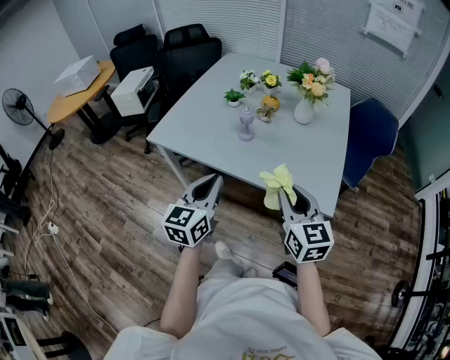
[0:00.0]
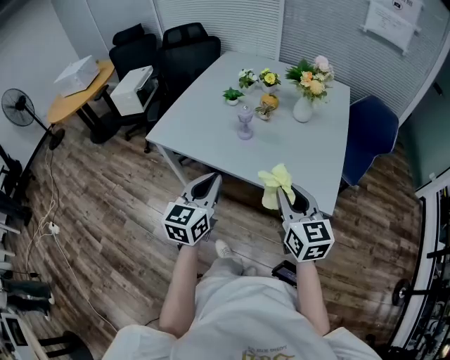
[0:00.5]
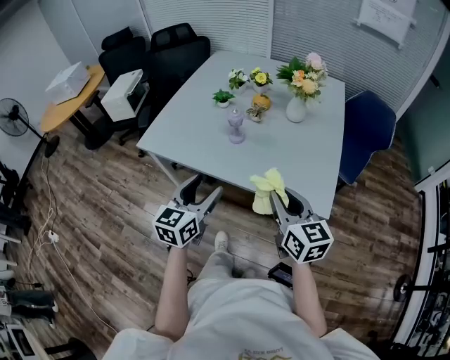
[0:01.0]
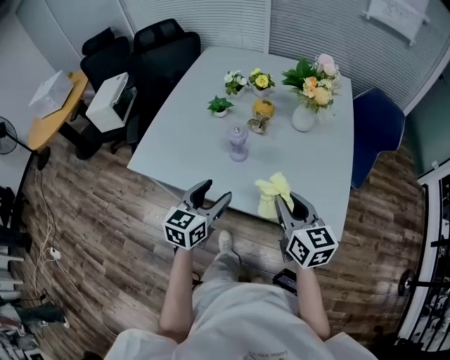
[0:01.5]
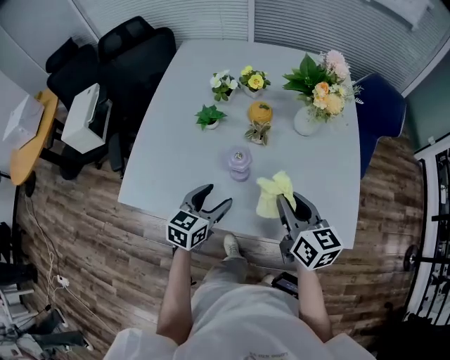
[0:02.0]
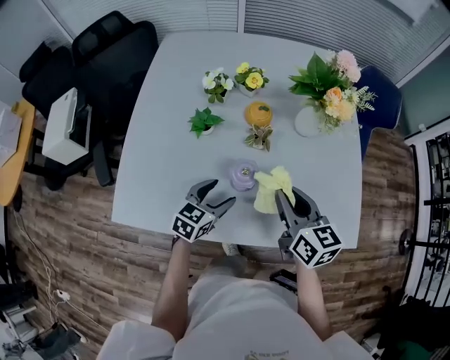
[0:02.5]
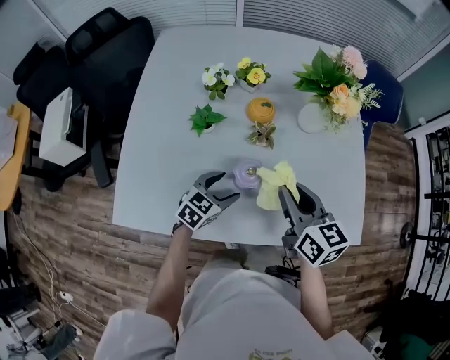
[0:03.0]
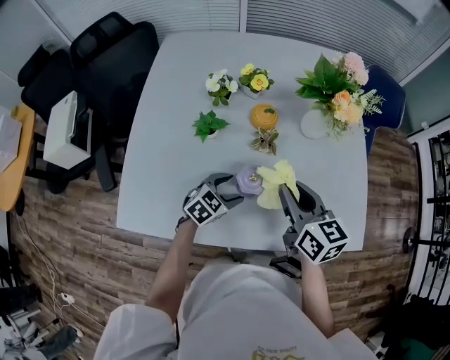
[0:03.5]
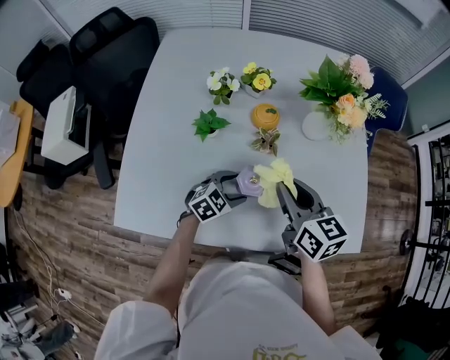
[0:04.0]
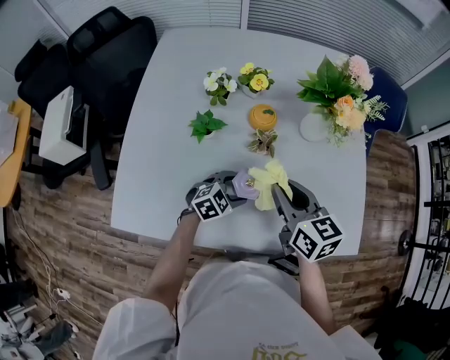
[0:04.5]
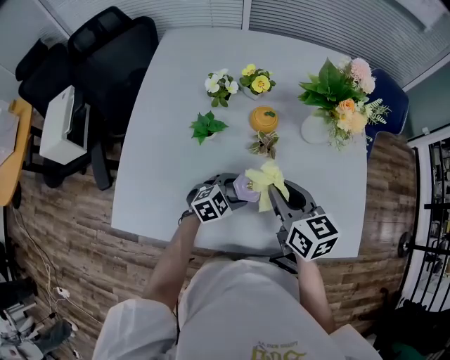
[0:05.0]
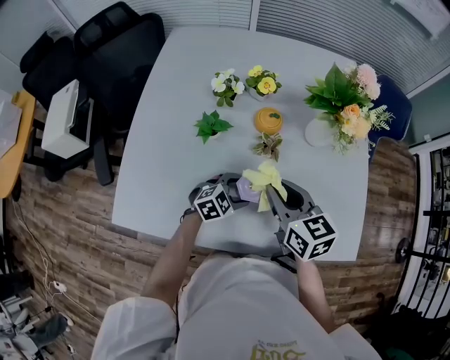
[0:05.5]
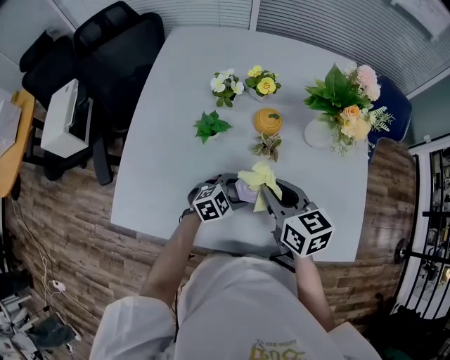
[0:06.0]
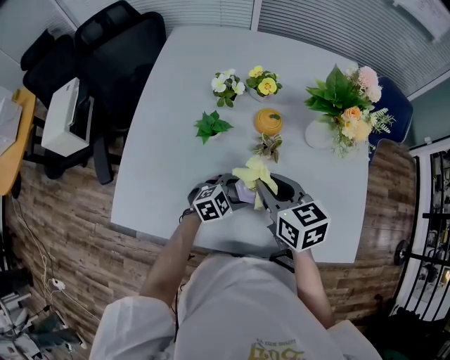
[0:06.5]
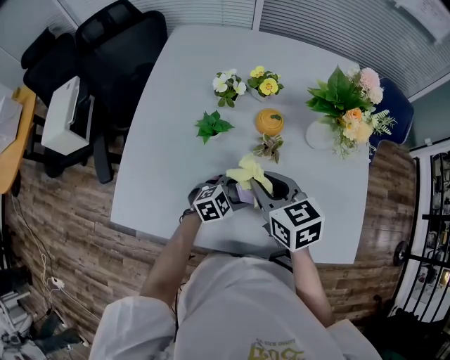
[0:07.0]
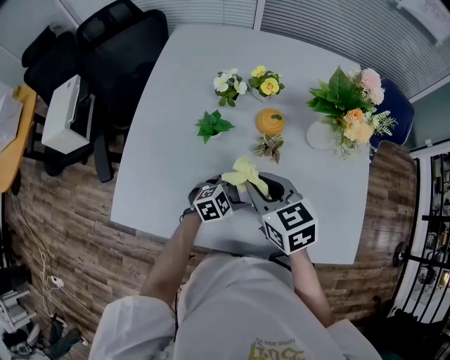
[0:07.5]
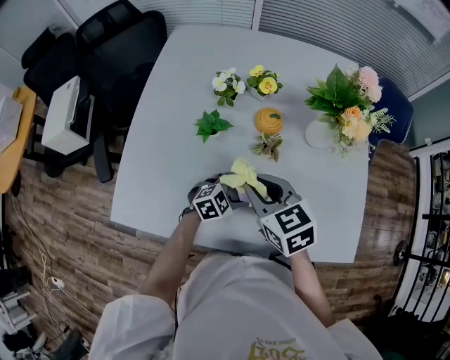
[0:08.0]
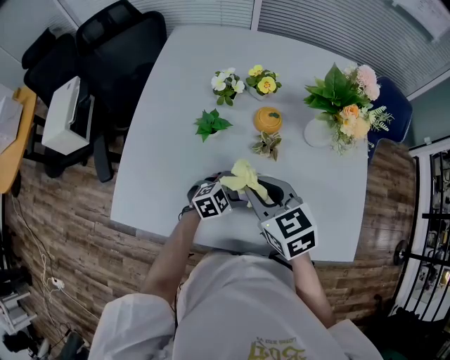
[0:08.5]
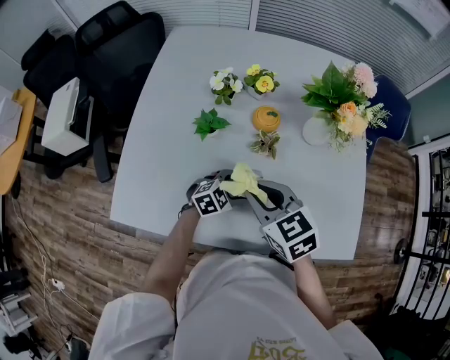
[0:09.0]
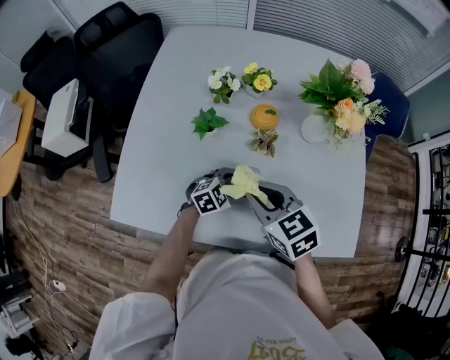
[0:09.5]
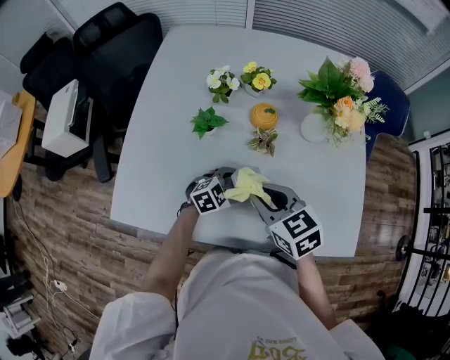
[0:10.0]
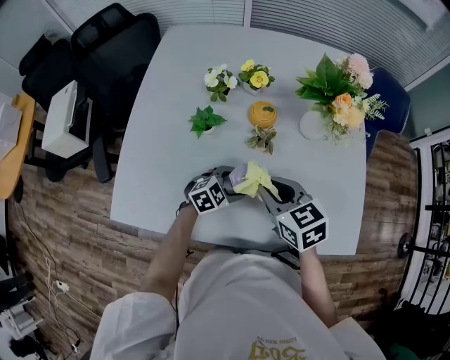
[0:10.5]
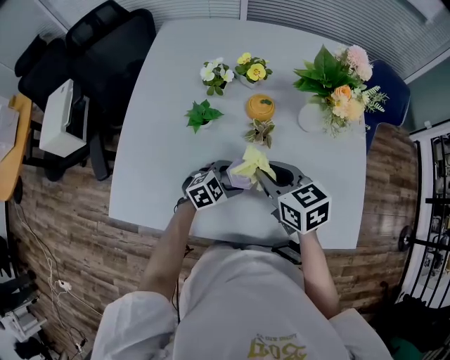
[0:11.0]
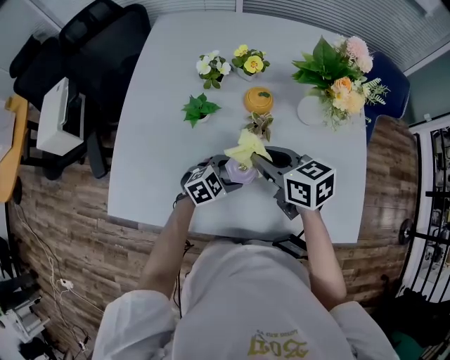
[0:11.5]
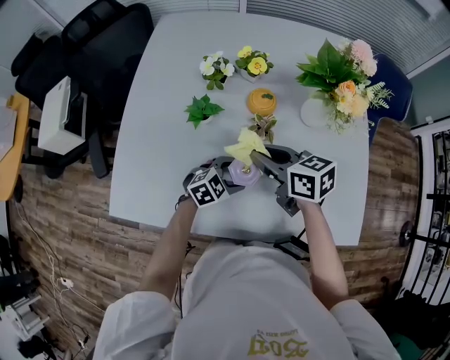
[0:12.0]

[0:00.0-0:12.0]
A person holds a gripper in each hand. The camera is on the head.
0:00.0 to 0:02.0: The right gripper moves forward, approximately 25 cm, and turns by about 20 degrees. Meanwhile the left gripper is displaced forward and downward by some 35 cm, changes its angle by about 30 degrees, and opens up.
0:02.0 to 0:04.0: The left gripper heads downward and forward, covering approximately 15 cm, and turns by roughly 40 degrees. The right gripper is displaced forward and to the left by approximately 10 cm.
0:04.0 to 0:06.0: There are only small adjustments of the grippers.
0:06.0 to 0:08.0: The grippers stay close to where they were, moving slightly.
0:08.0 to 0:10.0: The right gripper changes place by some 5 cm.
0:10.0 to 0:12.0: The right gripper is displaced forward by approximately 10 cm, and rotates about 20 degrees.

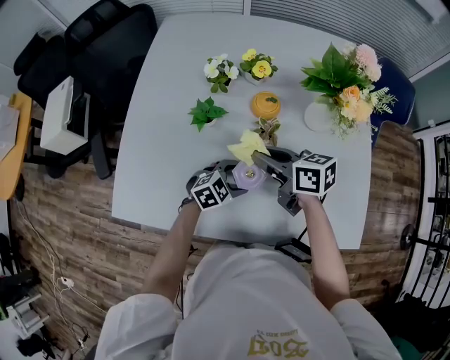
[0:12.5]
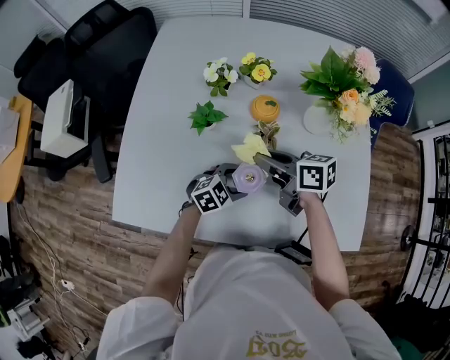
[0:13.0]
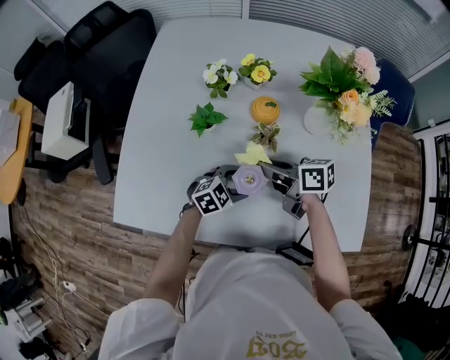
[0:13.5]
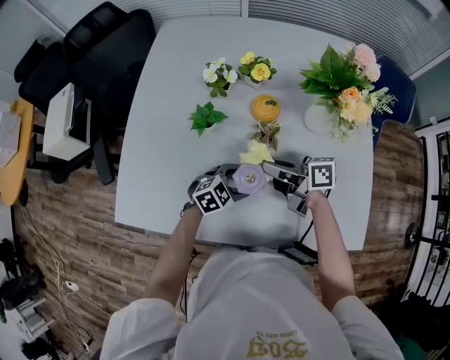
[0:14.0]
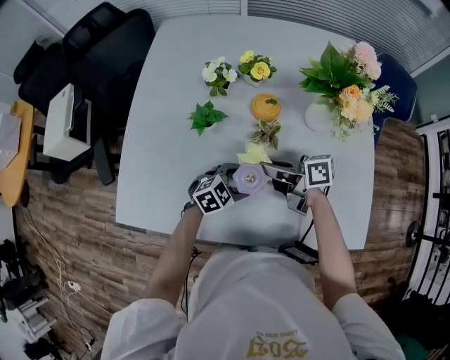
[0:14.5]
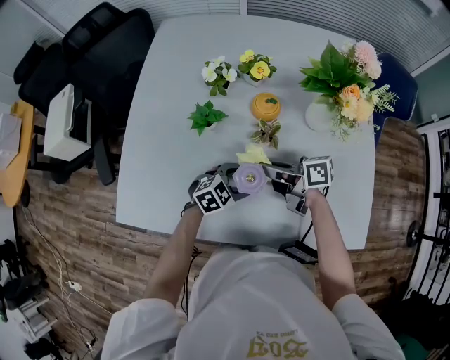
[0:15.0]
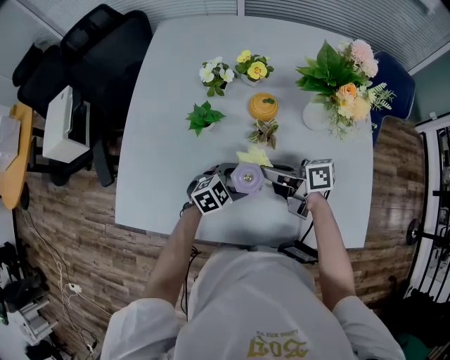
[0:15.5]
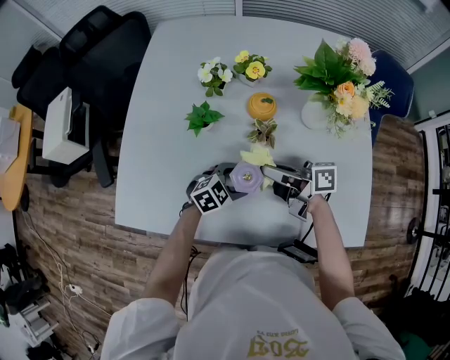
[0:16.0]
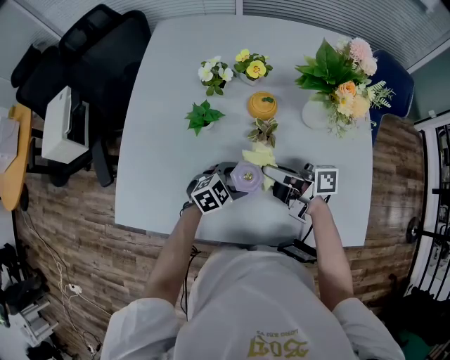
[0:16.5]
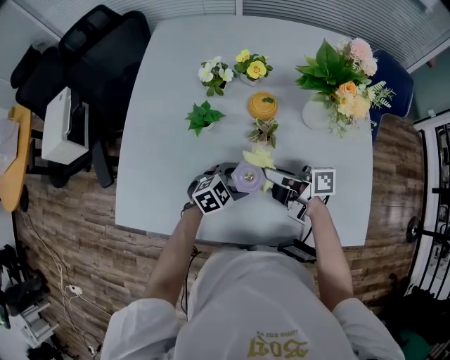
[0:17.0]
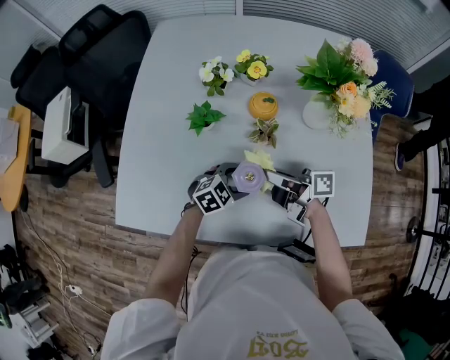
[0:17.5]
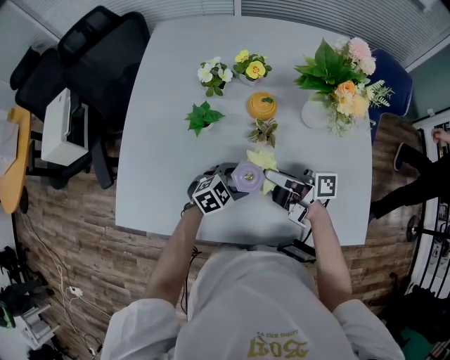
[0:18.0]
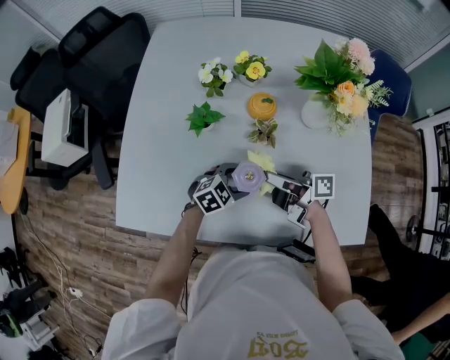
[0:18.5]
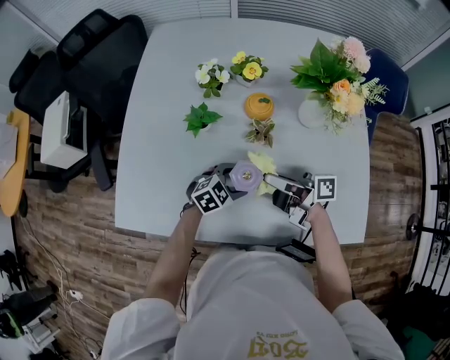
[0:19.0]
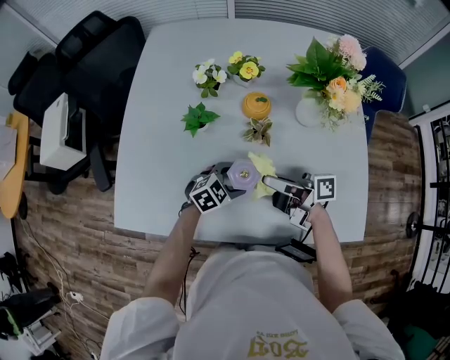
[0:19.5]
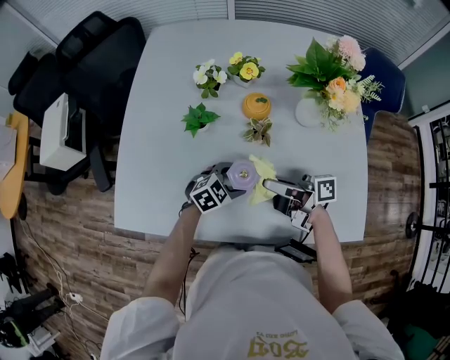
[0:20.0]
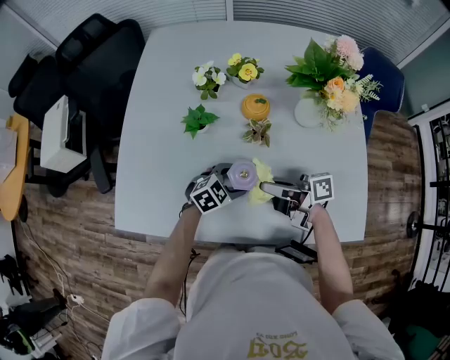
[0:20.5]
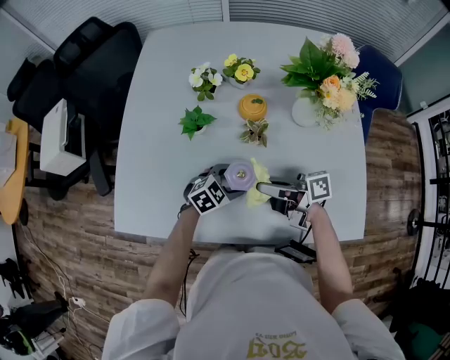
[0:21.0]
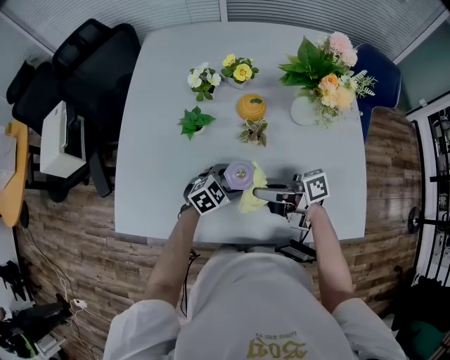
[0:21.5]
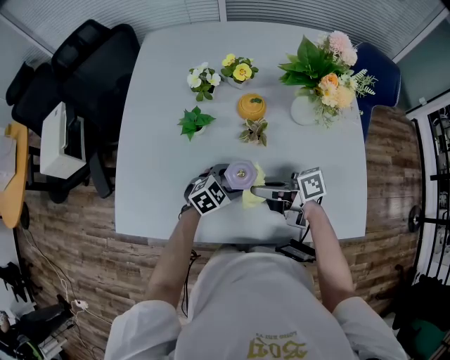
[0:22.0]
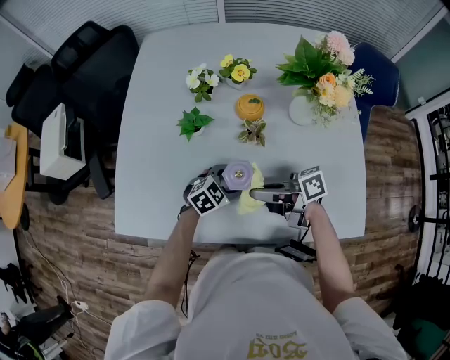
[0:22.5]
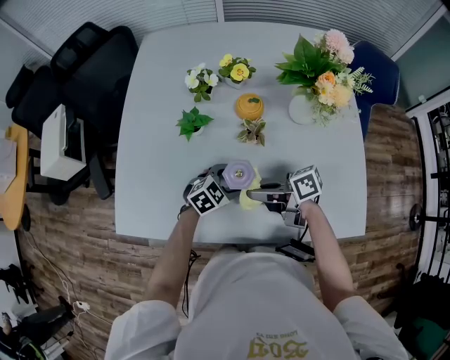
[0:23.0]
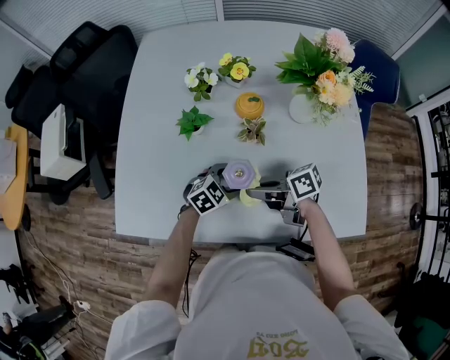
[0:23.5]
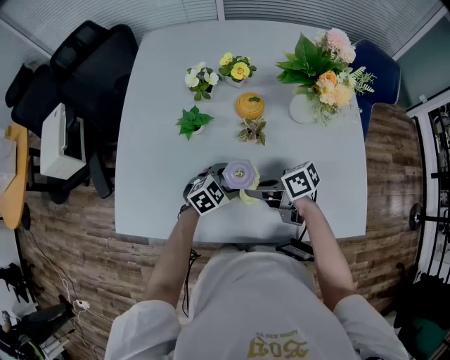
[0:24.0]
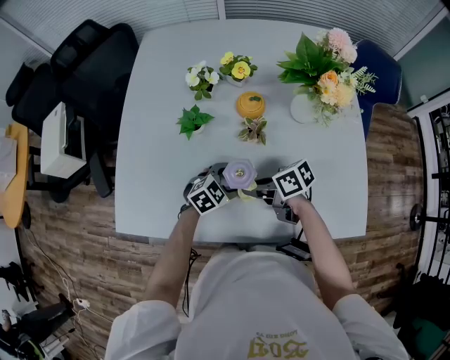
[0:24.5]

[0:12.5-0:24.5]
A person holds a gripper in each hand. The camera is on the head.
0:12.5 to 0:14.5: The right gripper rotates approximately 30 degrees.
0:14.5 to 0:18.5: The grippers make only small movements.
0:18.5 to 0:22.5: The grippers stay close to where they were, moving slightly.
0:22.5 to 0:24.5: The right gripper moves downward, roughly 5 cm, and changes its angle by approximately 30 degrees.

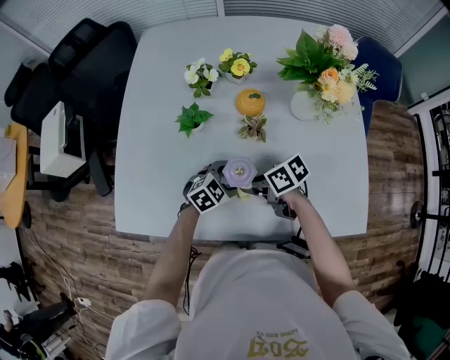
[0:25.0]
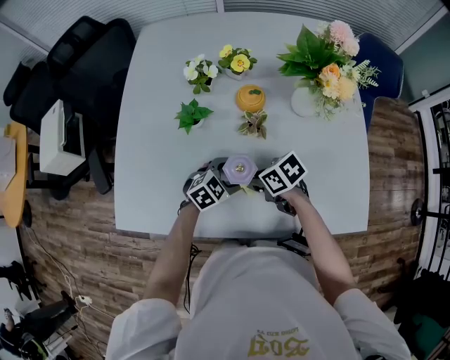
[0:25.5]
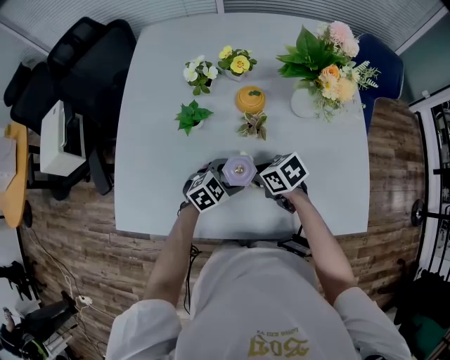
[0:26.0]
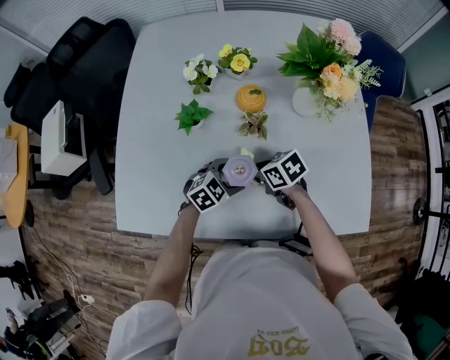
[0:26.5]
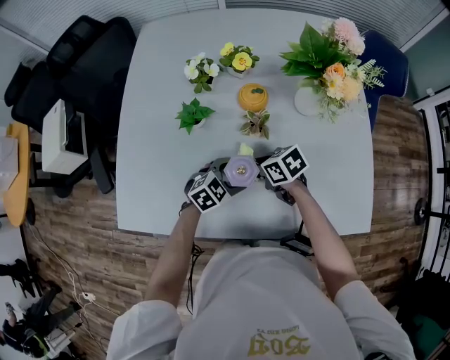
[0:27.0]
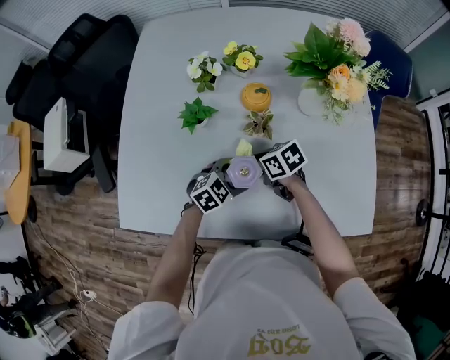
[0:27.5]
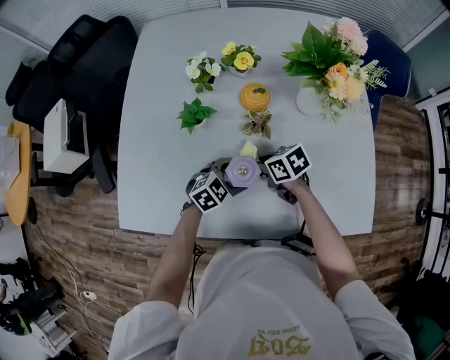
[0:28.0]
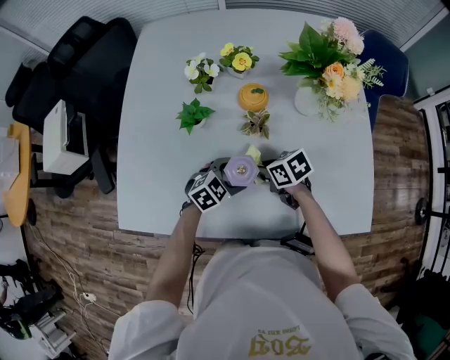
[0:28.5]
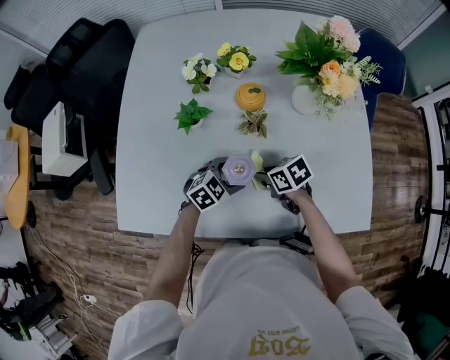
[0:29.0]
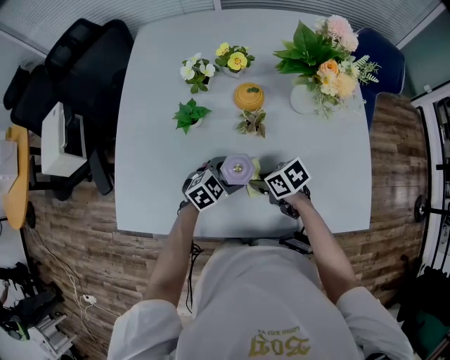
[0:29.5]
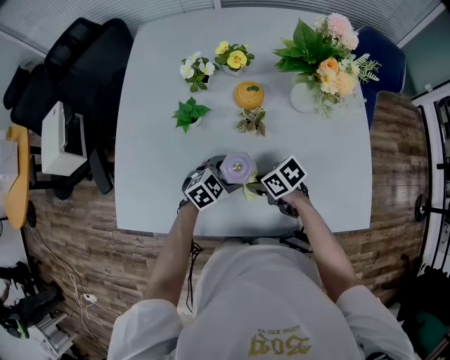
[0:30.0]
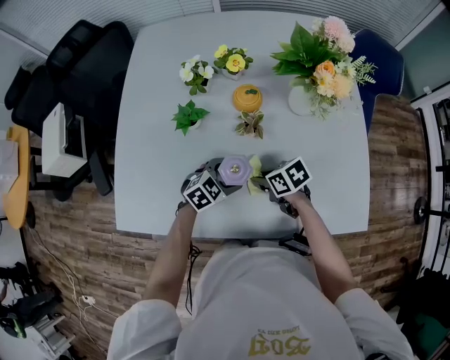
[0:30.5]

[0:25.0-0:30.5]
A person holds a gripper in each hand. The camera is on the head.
0:25.0 to 0:27.0: The right gripper moves approximately 5 cm.
0:27.0 to 0:28.5: The grippers move only a little.
